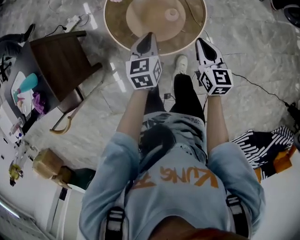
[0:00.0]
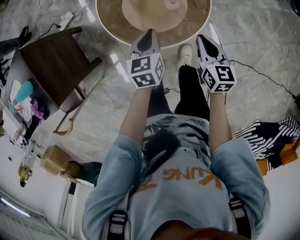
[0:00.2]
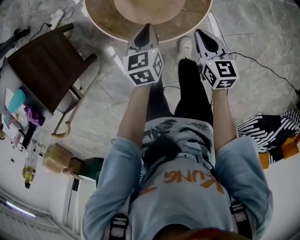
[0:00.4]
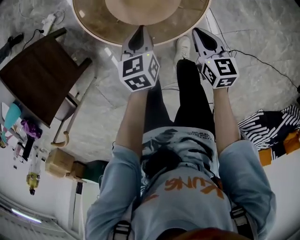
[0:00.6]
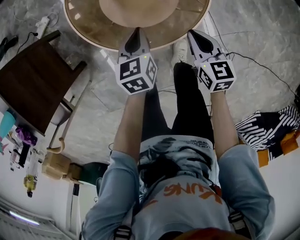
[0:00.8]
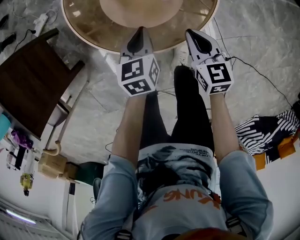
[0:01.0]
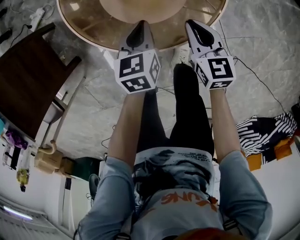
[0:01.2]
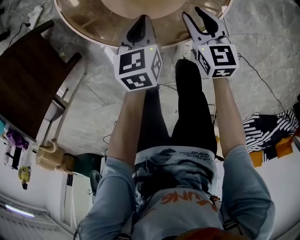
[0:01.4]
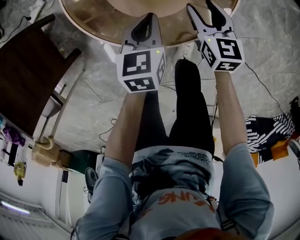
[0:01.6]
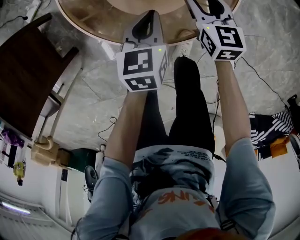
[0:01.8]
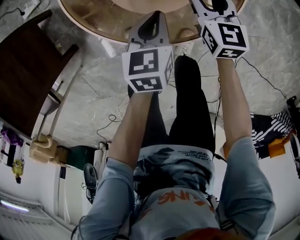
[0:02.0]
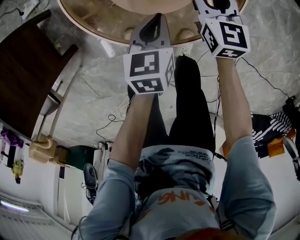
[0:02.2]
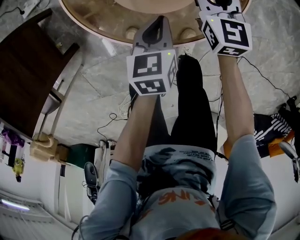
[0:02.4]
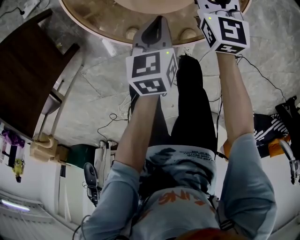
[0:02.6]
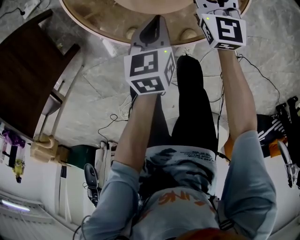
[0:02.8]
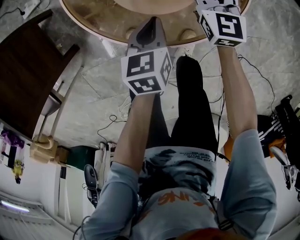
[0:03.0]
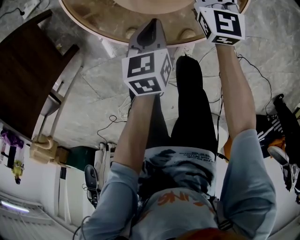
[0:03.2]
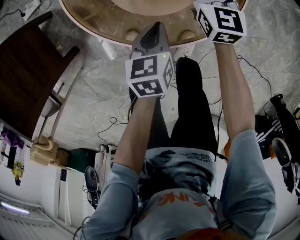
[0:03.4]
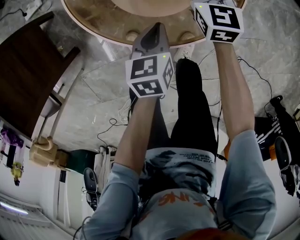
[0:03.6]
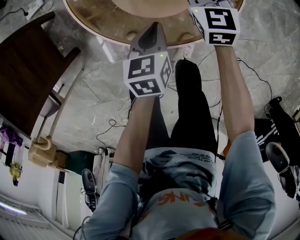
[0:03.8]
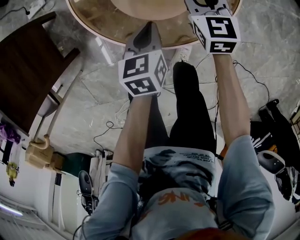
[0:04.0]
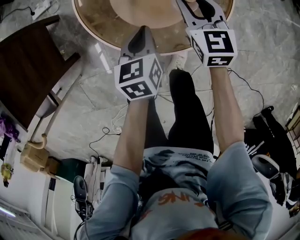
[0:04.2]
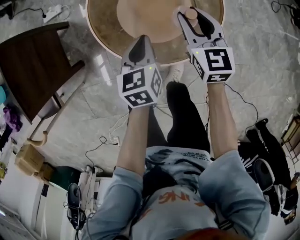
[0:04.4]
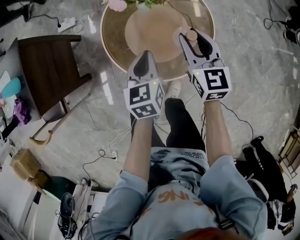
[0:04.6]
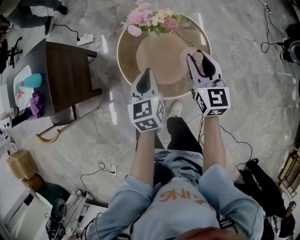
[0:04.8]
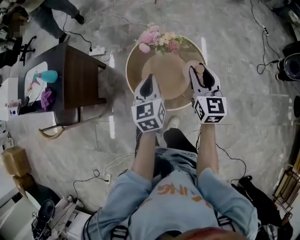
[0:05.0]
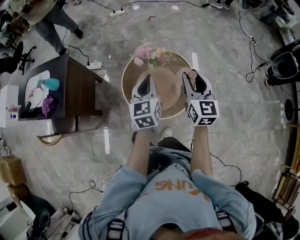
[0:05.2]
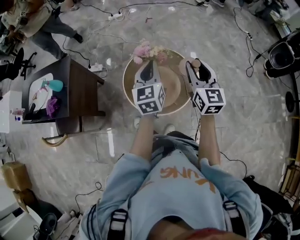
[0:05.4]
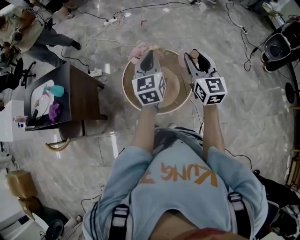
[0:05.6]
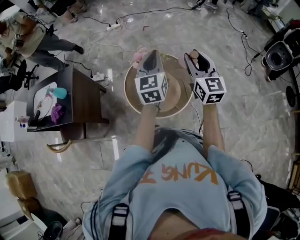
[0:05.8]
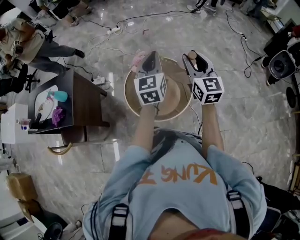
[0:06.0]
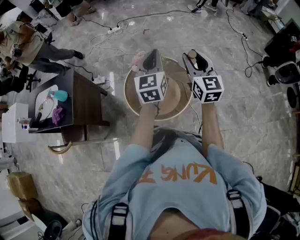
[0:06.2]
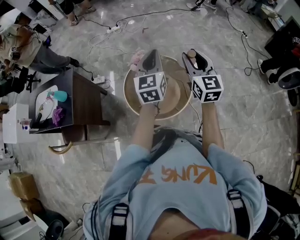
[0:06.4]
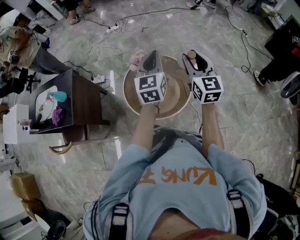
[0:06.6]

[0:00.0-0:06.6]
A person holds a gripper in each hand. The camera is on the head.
0.0 to 1.6 s: The grippers both shift downward by about 25 cm. The right gripper opens.
1.6 to 3.2 s: The right gripper heads forward, covering roughly 10 cm.
3.2 to 5.0 s: The grippers both shift upward by approximately 40 cm. The left gripper changes its angle by roughly 40 degrees.
5.0 to 6.6 s: The two grippers go roughly 20 cm upward and to the right. The left gripper rotates approximately 20 degrees.

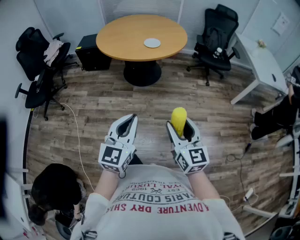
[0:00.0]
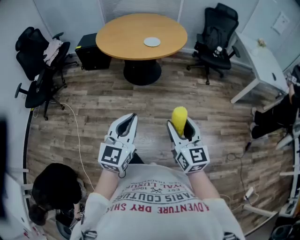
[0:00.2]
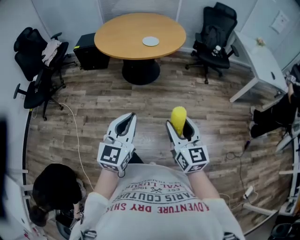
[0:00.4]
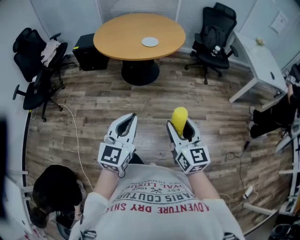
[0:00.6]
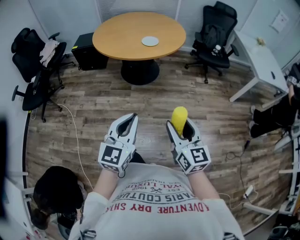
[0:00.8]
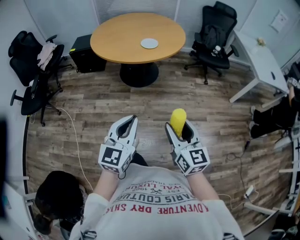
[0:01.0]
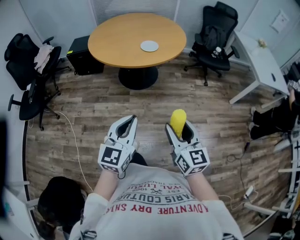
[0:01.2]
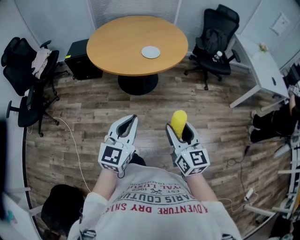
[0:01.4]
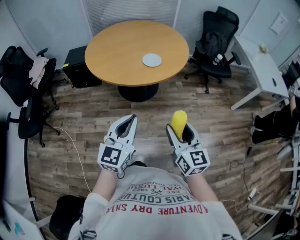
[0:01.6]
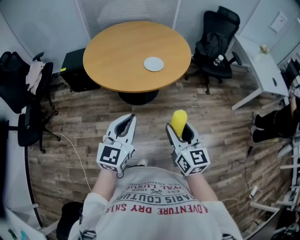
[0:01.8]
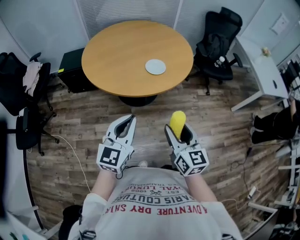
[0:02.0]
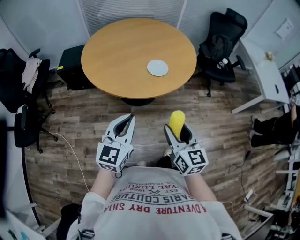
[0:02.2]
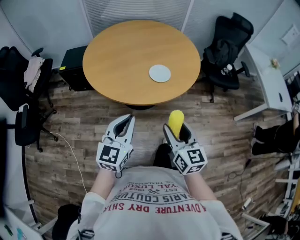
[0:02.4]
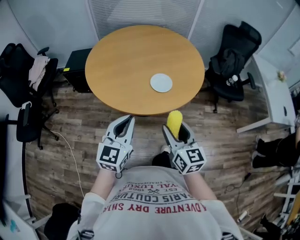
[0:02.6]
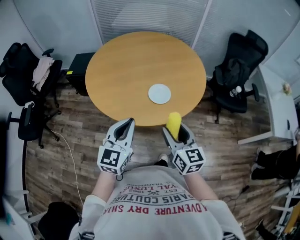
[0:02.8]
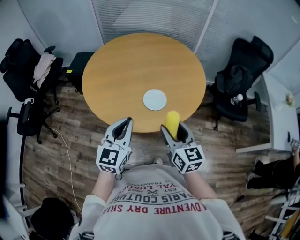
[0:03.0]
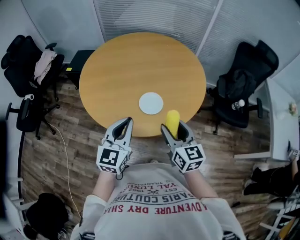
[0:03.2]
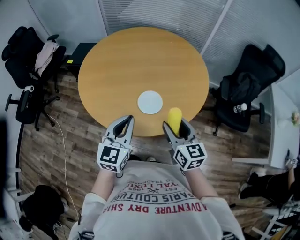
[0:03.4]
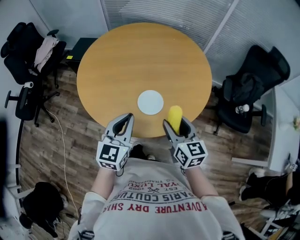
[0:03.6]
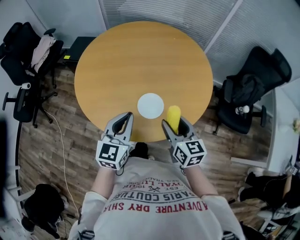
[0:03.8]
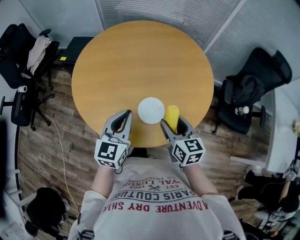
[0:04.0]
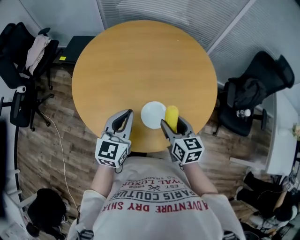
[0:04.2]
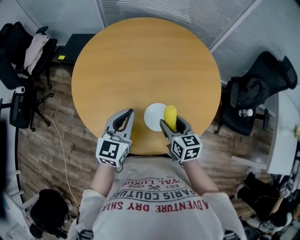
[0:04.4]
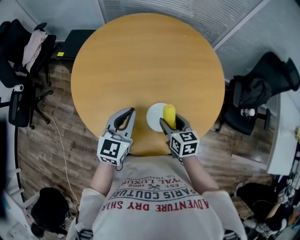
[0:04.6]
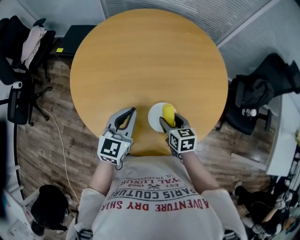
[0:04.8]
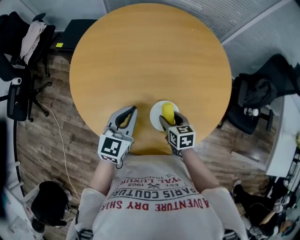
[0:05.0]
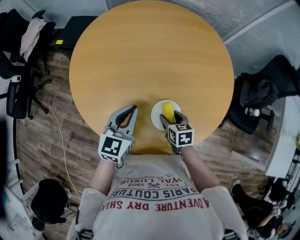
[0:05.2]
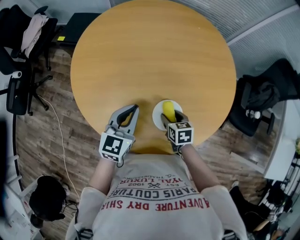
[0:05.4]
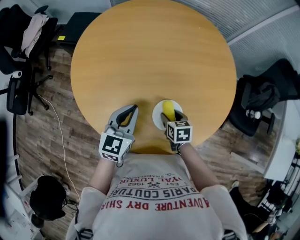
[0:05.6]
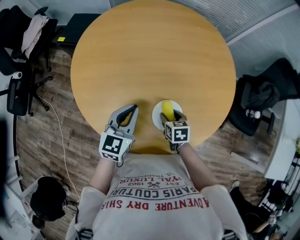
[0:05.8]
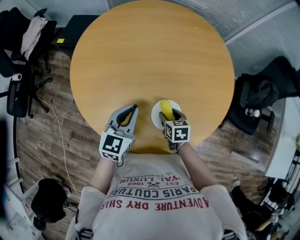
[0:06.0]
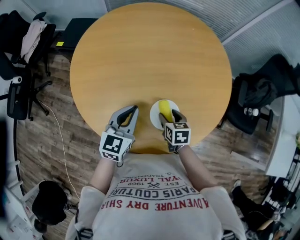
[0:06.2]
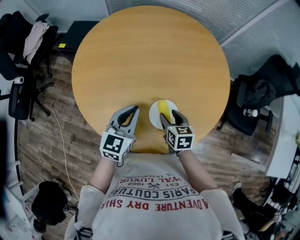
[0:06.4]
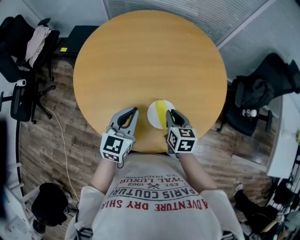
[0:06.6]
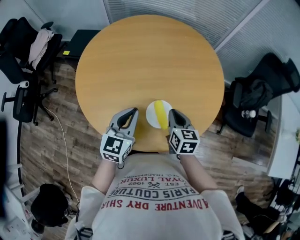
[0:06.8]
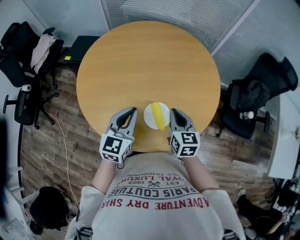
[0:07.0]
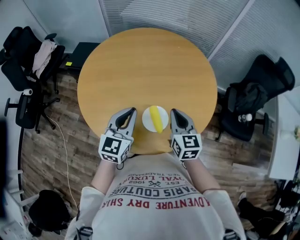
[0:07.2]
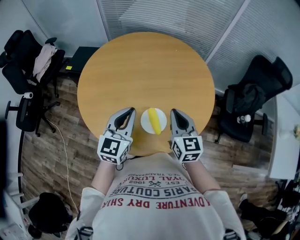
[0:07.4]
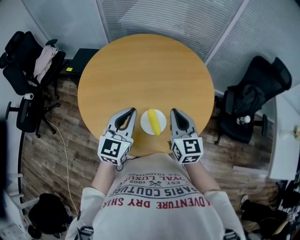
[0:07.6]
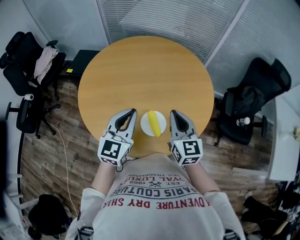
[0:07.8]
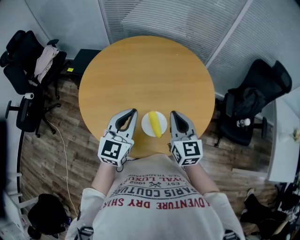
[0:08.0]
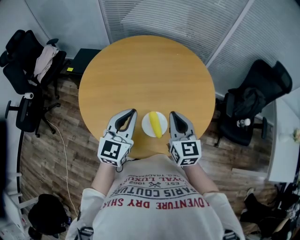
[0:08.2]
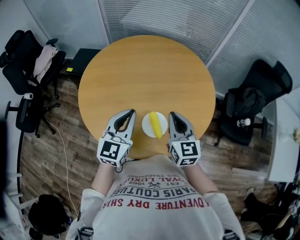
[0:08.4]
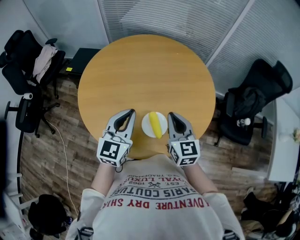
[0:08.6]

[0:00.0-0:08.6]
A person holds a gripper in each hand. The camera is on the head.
0.0 to 1.4 s: The grippers both shift forward by some 15 cm.
1.4 to 2.8 s: The two grippers go about 35 cm forward.
2.8 to 4.4 s: The left gripper moves forward, roughly 25 cm. The right gripper moves forward and downward, about 30 cm, and rotates about 20 degrees.
4.4 to 5.8 s: The left gripper is displaced downward by some 10 cm; the right gripper travels downward by some 15 cm, and rotates roughly 20 degrees.
5.8 to 7.2 s: The left gripper shifts roughly 10 cm upward. The right gripper heads upward, covering roughly 25 cm, tips its fingers upward by some 40 degrees, and closes its fingers.
7.2 to 8.6 s: The grippers make only small movements.

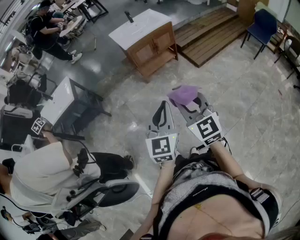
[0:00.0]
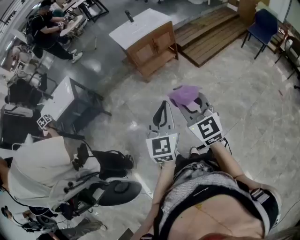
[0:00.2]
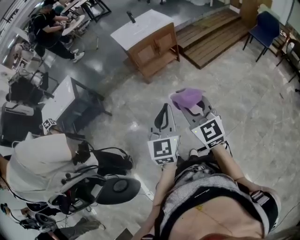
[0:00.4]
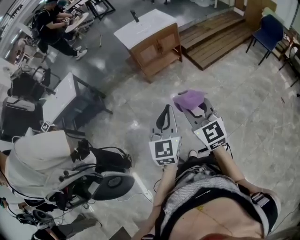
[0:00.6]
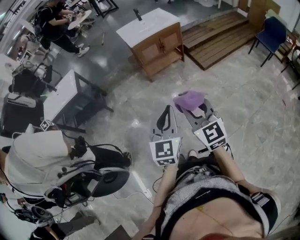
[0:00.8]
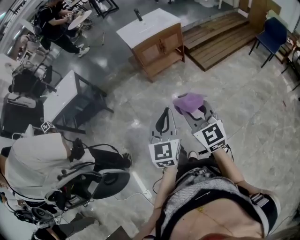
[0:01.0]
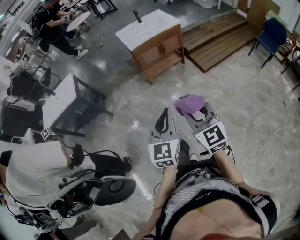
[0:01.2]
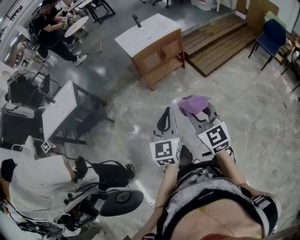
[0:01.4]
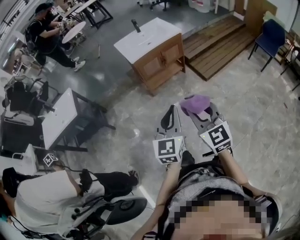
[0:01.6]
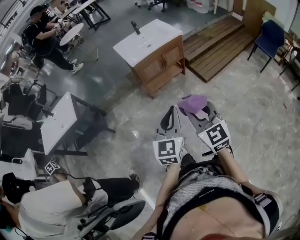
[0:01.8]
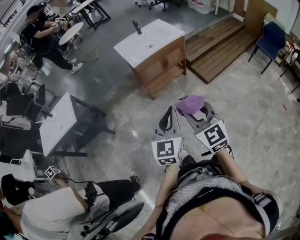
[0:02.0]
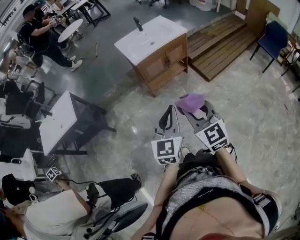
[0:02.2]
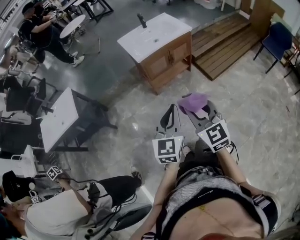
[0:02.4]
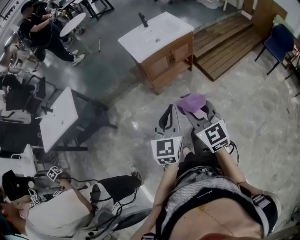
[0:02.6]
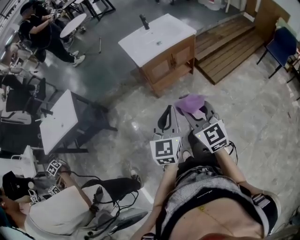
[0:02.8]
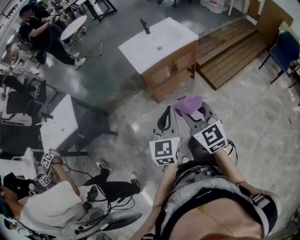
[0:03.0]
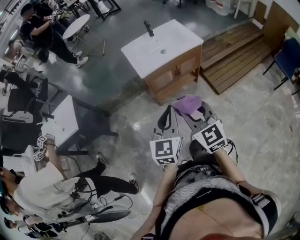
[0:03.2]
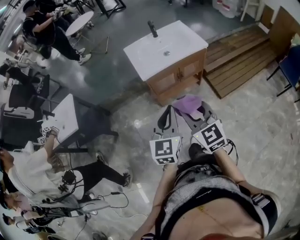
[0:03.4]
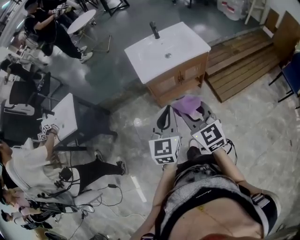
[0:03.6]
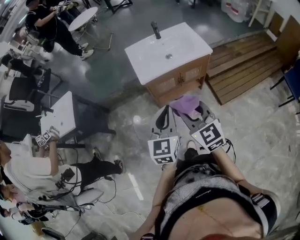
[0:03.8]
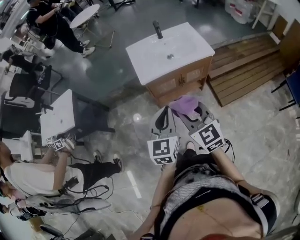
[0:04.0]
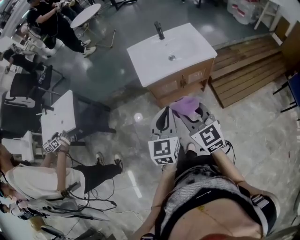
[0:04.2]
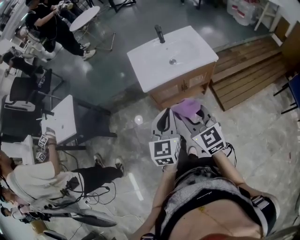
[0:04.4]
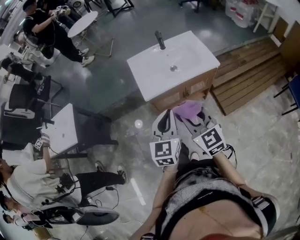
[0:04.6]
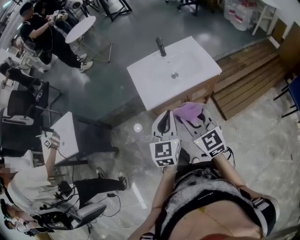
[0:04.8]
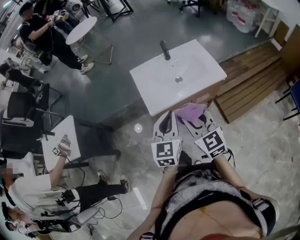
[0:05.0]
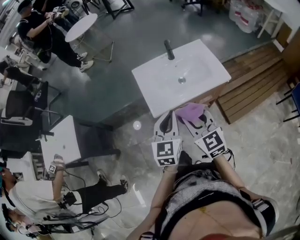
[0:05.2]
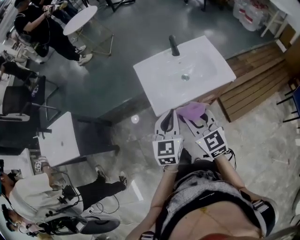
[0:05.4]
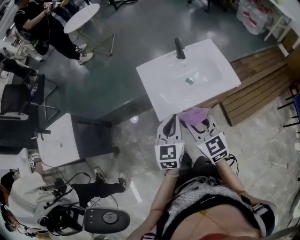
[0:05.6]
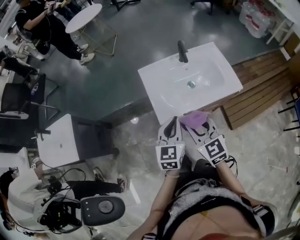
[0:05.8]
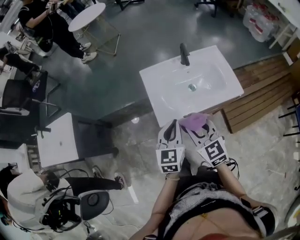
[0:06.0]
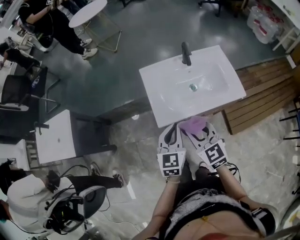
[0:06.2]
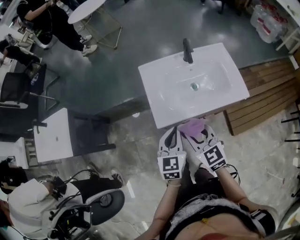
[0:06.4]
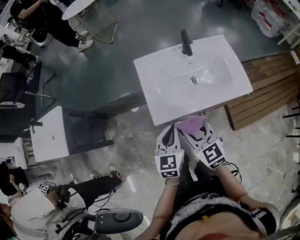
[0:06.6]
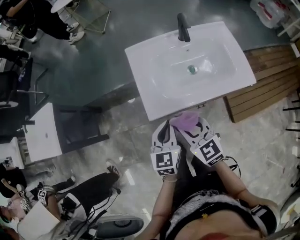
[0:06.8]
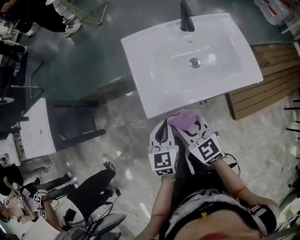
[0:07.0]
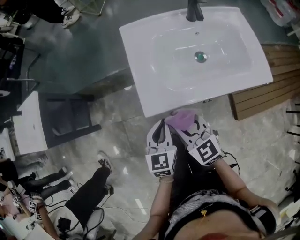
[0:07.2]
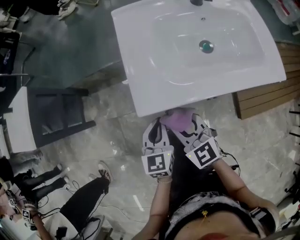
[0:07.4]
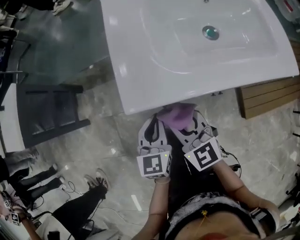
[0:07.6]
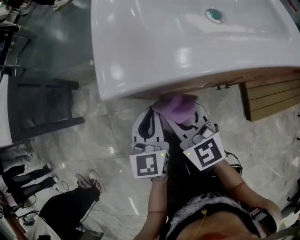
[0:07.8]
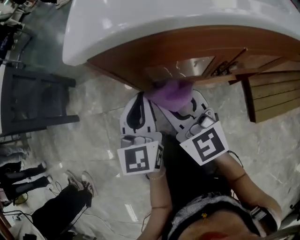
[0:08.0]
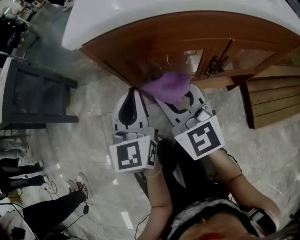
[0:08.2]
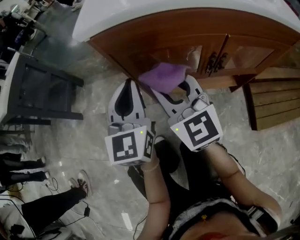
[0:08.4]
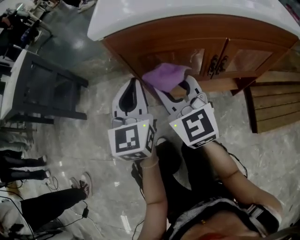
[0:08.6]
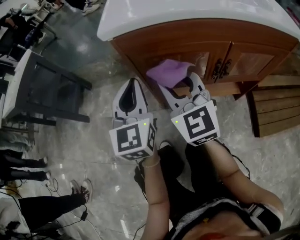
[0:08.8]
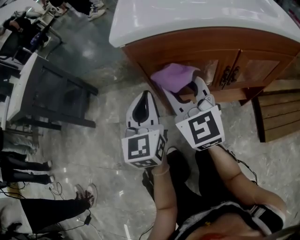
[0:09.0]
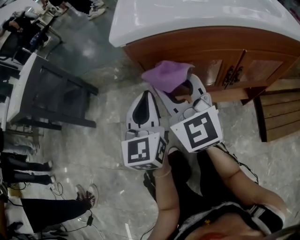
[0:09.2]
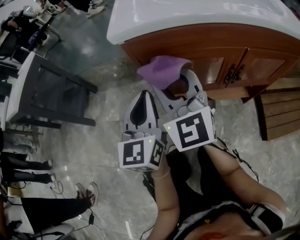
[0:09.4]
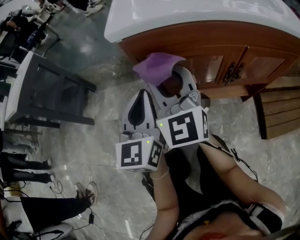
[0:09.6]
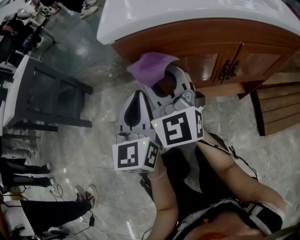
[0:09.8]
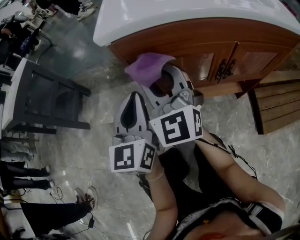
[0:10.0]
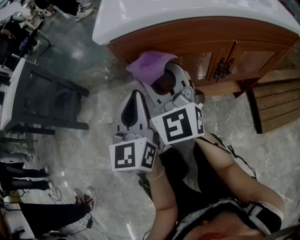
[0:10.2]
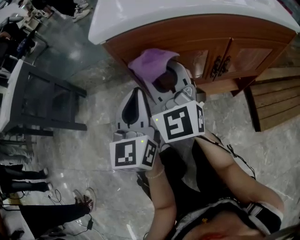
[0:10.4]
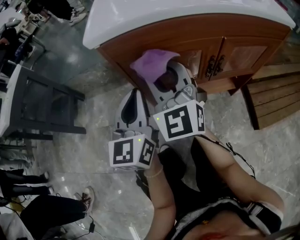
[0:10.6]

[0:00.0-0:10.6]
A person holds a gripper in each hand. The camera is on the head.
0.0 to 1.6 s: The two grippers go approximately 15 cm forward.
1.6 to 3.0 s: Both grippers travel together forward, approximately 20 cm.
3.0 to 4.6 s: The two grippers go about 25 cm forward.
4.6 to 6.0 s: The left gripper travels forward and downward by approximately 20 cm; the right gripper is displaced forward by approximately 15 cm.
6.0 to 7.6 s: The grippers both shift downward by some 35 cm.
7.6 to 9.0 s: The right gripper swivels approximately 20 degrees, while the left gripper swivels about 20 degrees.
9.0 to 10.6 s: There are only small adjustments of the grippers.
